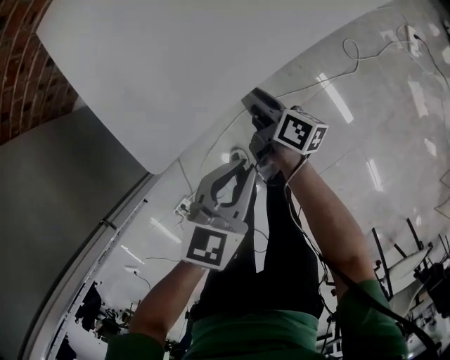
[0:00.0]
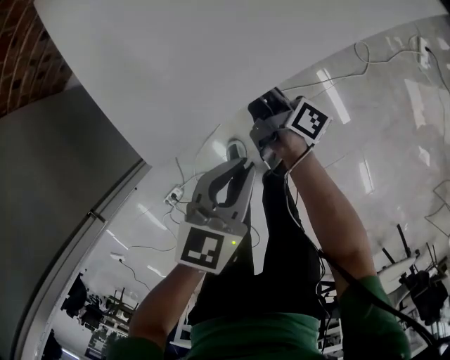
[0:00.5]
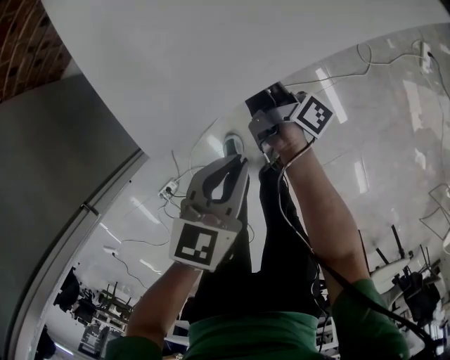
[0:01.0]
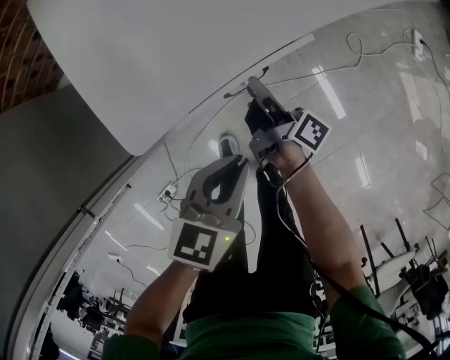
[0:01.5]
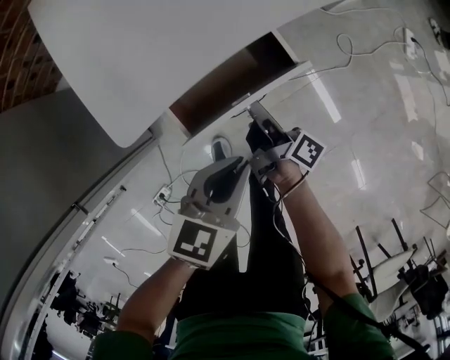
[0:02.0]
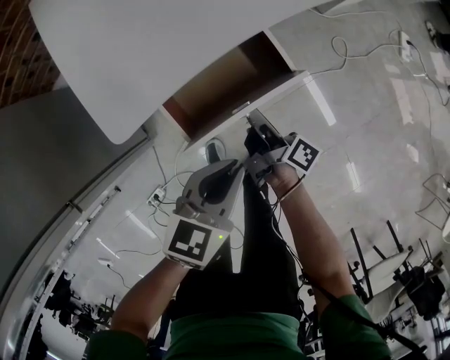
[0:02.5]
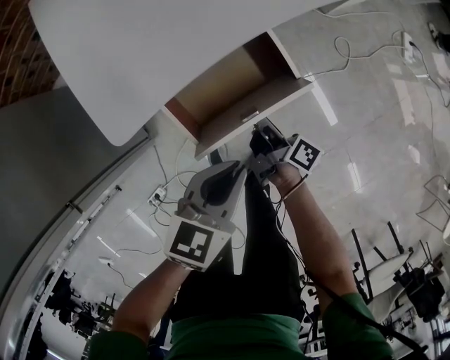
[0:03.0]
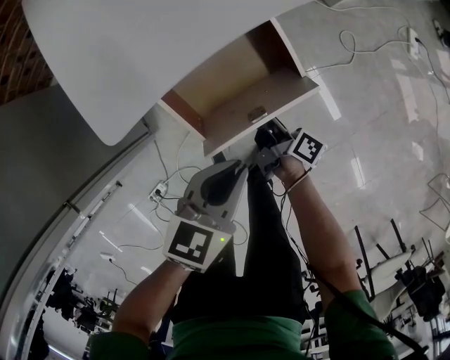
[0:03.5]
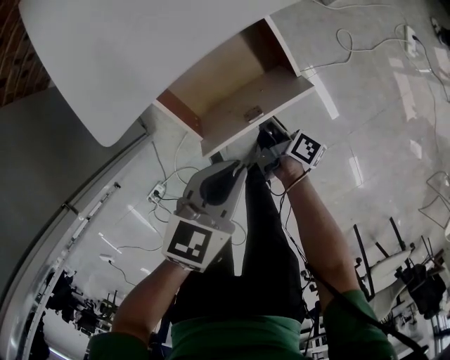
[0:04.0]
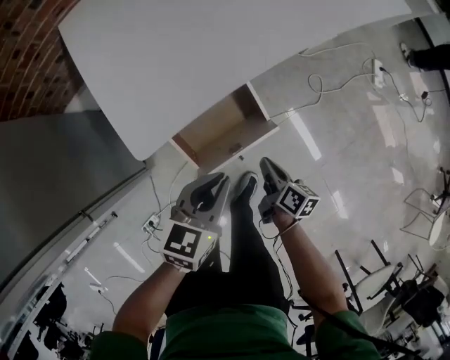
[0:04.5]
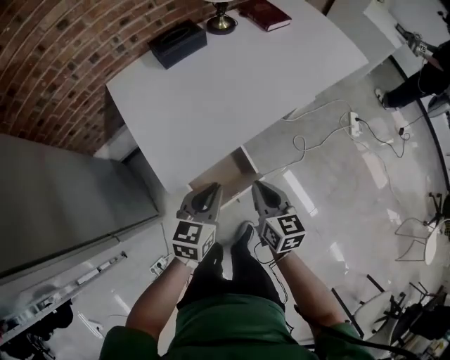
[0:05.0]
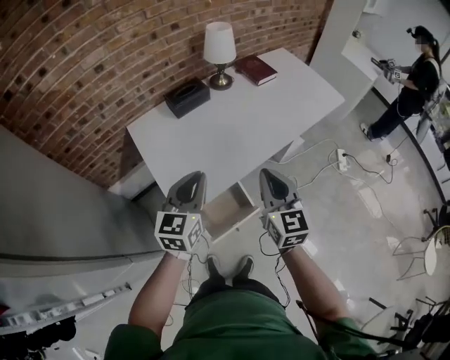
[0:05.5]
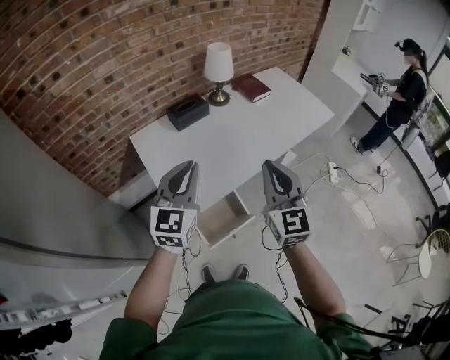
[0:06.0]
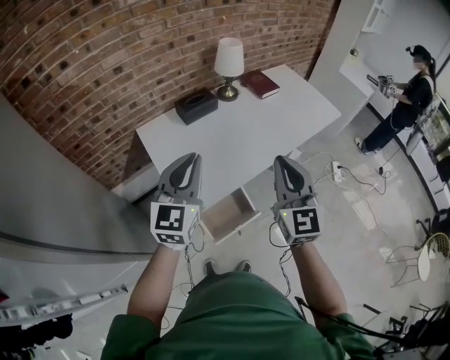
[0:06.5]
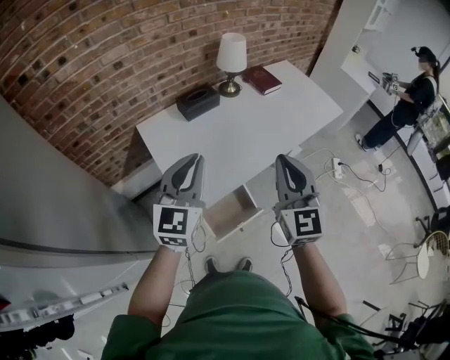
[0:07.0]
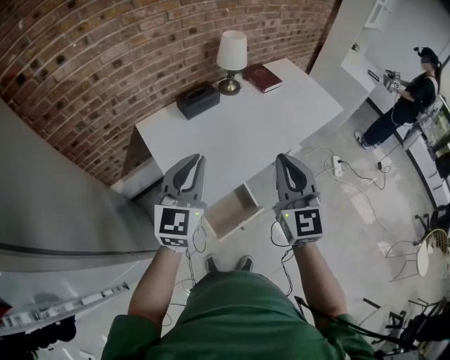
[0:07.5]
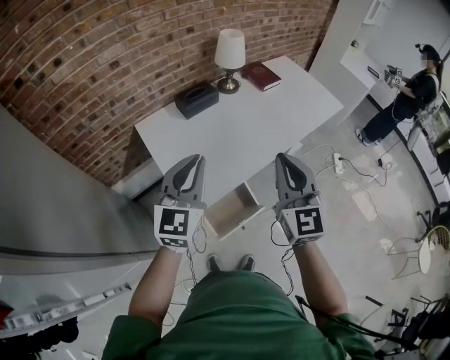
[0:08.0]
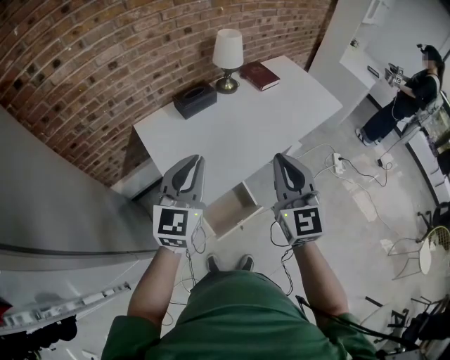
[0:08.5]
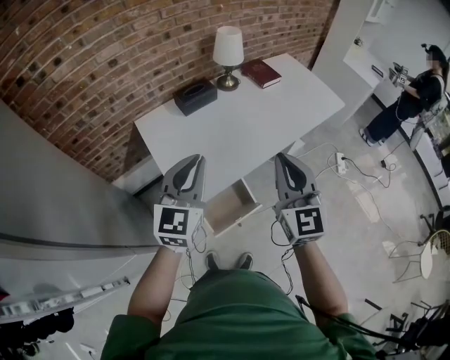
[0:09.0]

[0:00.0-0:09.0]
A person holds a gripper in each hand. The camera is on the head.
0:00.0 to 0:02.0: The right gripper heads backward and to the right, covering about 10 cm, and closes its fingers, while the left gripper moves roughly 5 cm.
0:02.0 to 0:04.5: The right gripper shifts about 10 cm to the right and backward, goes downward and returns, some 10 cm each way, and changes its angle by some 30 degrees, while the left gripper heads upward, covering approximately 5 cm.
0:04.5 to 0:07.0: The grippers both shift upward by about 50 cm. The left gripper angles its fingers upward, by about 30 degrees; the right gripper rolls counterclockwise, seen from behind, by roughly 70 degrees.
0:07.0 to 0:09.0: There are only small adjustments of the grippers.

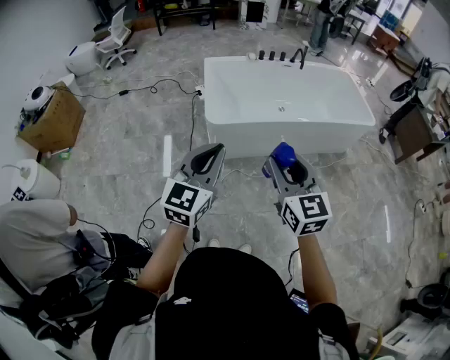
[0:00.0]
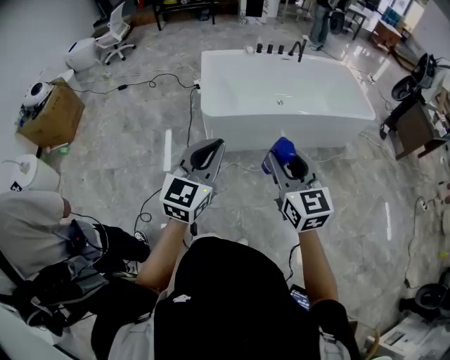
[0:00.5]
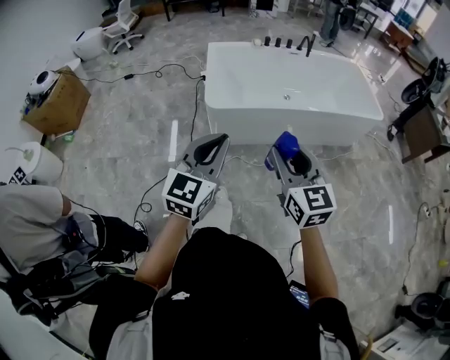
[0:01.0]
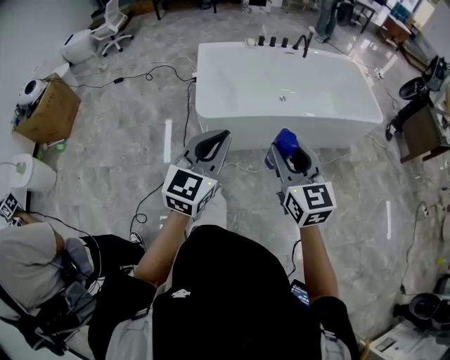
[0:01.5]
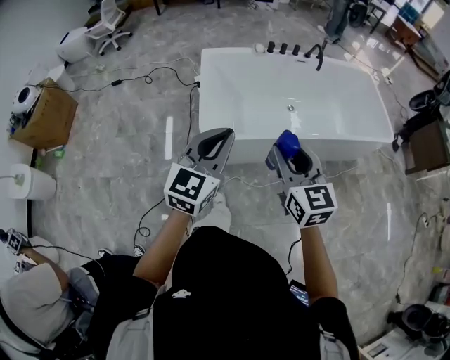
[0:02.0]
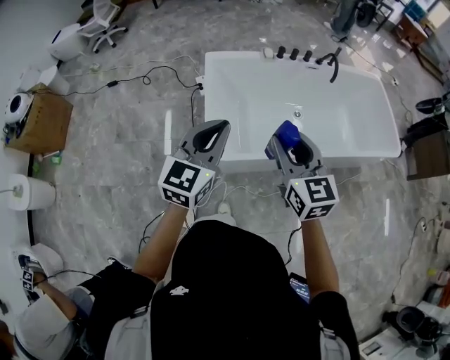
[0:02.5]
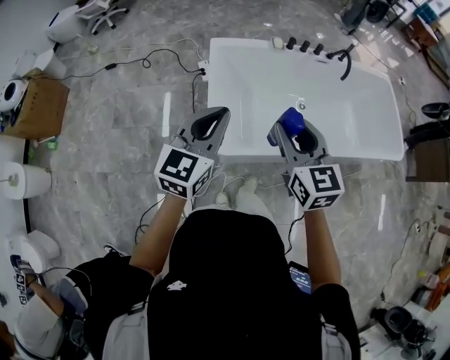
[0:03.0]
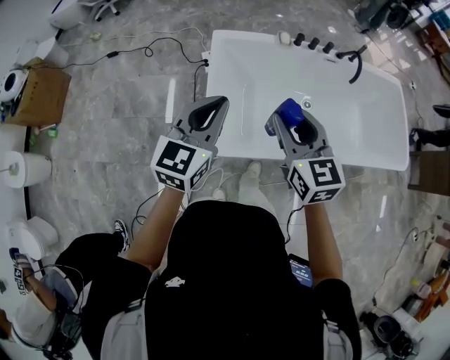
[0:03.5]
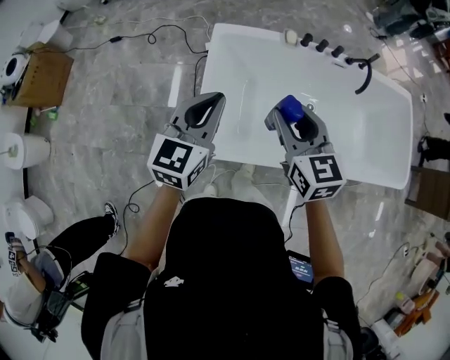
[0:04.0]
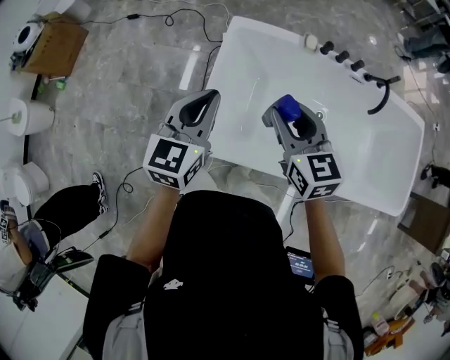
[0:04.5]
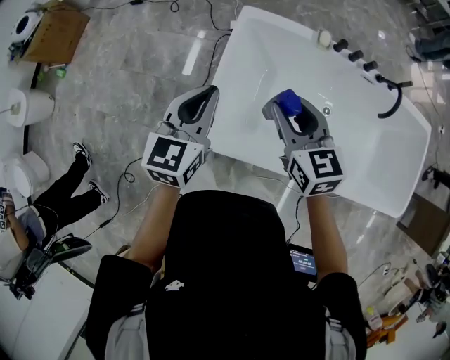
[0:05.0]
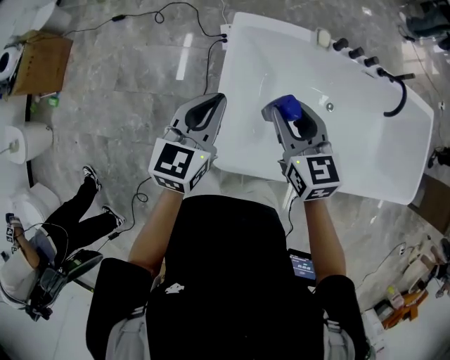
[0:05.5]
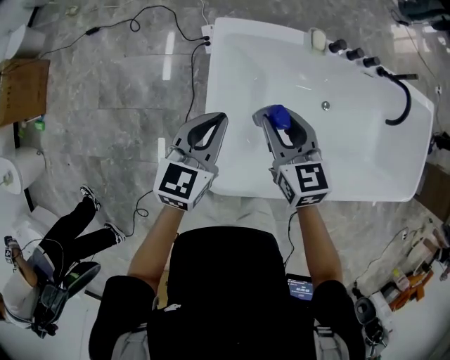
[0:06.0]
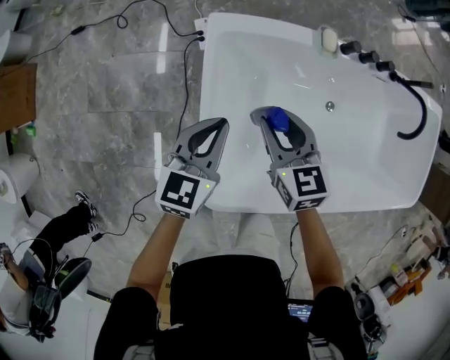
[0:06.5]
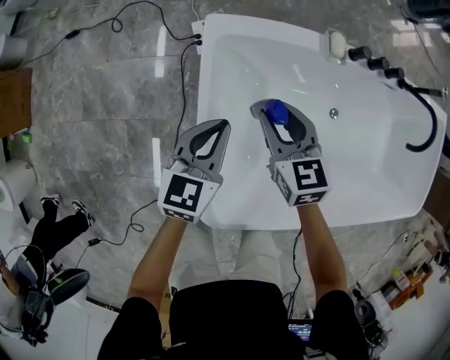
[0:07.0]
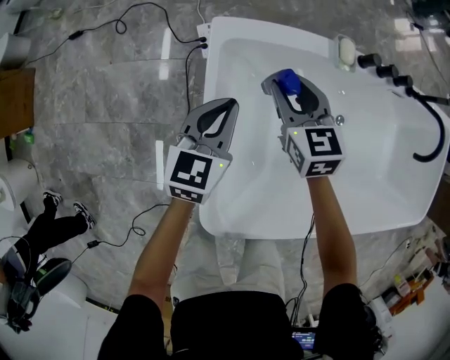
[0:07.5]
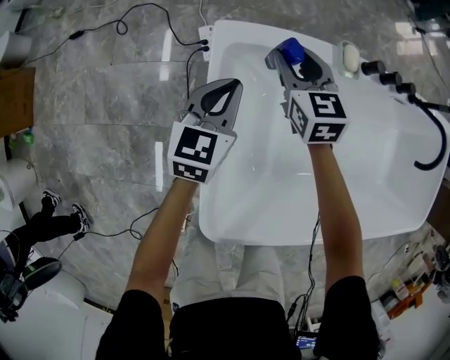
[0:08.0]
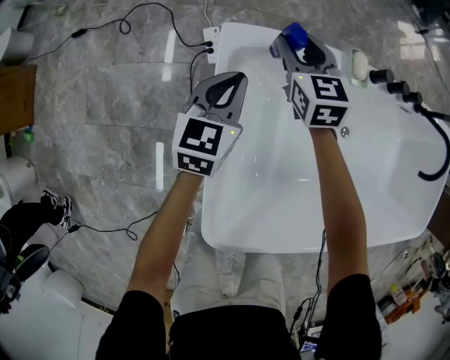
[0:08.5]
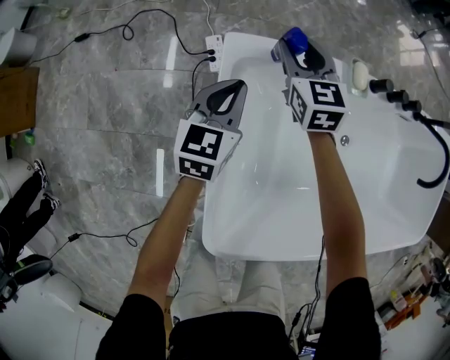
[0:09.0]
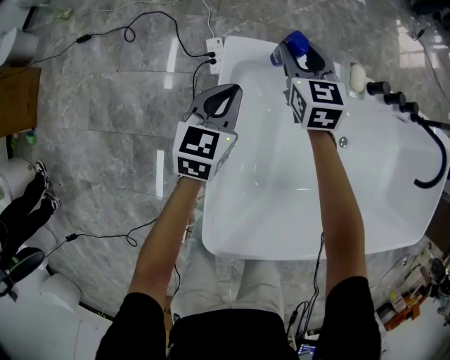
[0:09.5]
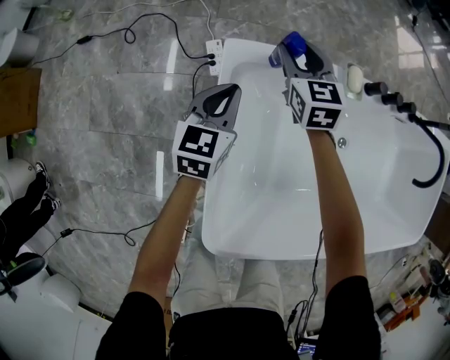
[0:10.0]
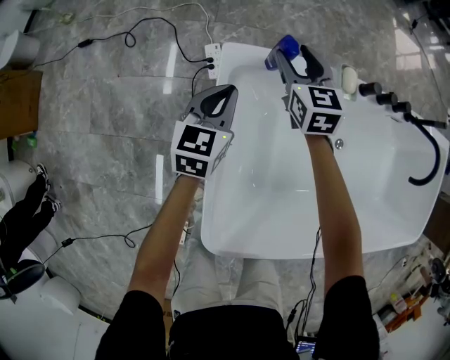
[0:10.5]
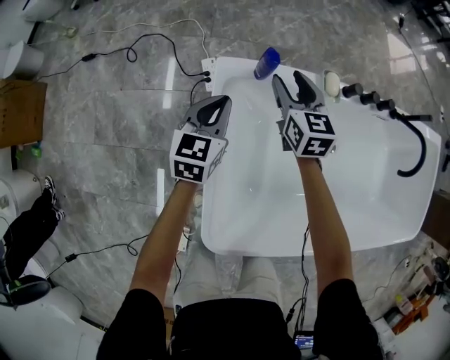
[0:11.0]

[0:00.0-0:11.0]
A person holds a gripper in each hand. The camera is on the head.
0:00.0 to 0:02.0: Both grippers move forward, about 30 cm.
0:02.0 to 0:03.5: Both grippers travel together forward, approximately 30 cm.
0:03.5 to 0:05.5: The two grippers go roughly 25 cm forward and downward.
0:05.5 to 0:07.5: The grippers both shift downward and forward by roughly 35 cm.
0:07.5 to 0:09.0: The left gripper is displaced forward by about 10 cm. The right gripper is displaced forward by about 15 cm.
0:09.0 to 0:11.0: The left gripper travels upward by roughly 5 cm. Meanwhile the right gripper moves upward and backward, roughly 10 cm.

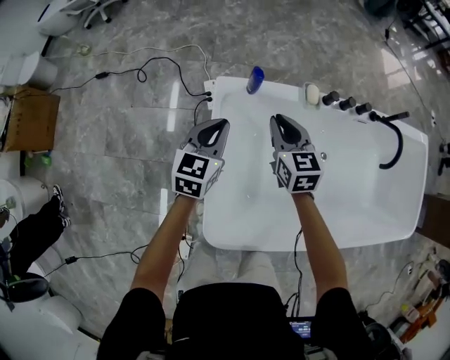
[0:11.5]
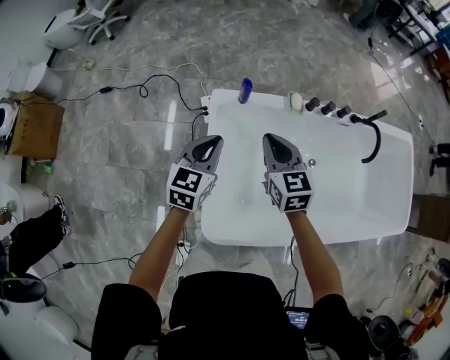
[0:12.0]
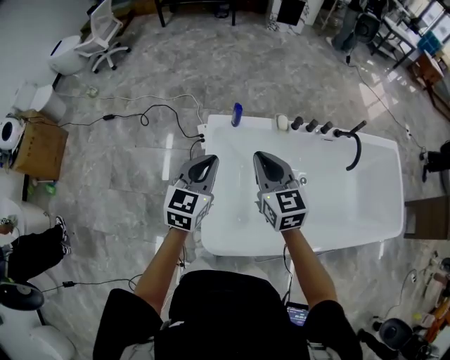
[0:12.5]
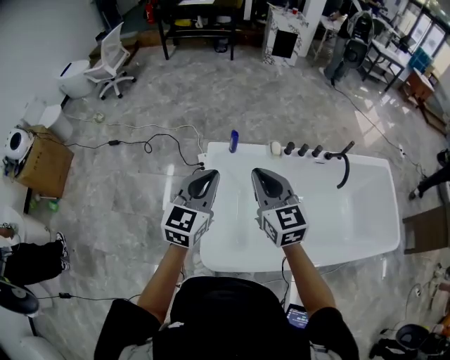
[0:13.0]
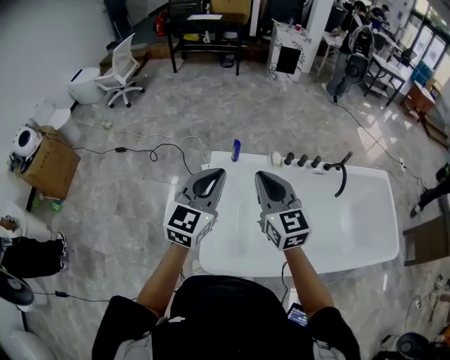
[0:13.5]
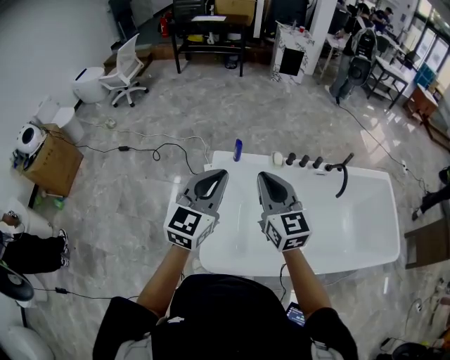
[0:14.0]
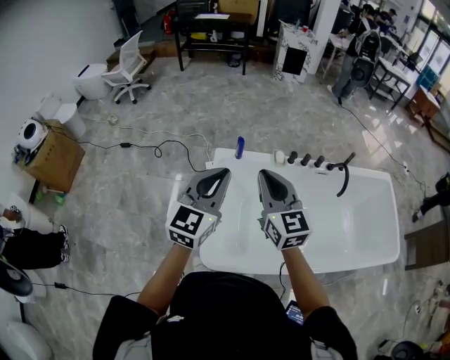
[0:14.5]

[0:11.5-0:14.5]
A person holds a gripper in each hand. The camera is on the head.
0:11.5 to 0:13.0: The two grippers go about 35 cm upward and backward.
0:13.0 to 0:14.5: The right gripper shifts by about 5 cm; the left gripper travels upward and backward by some 10 cm.

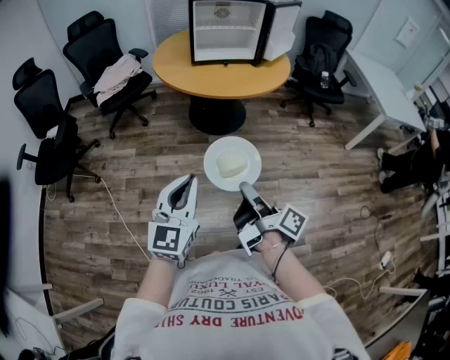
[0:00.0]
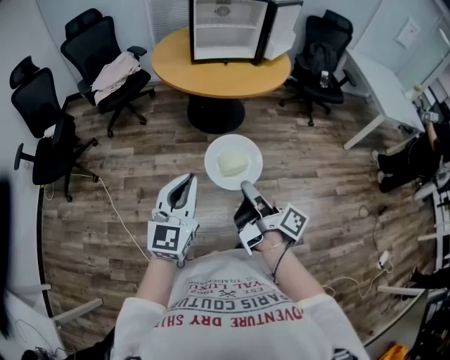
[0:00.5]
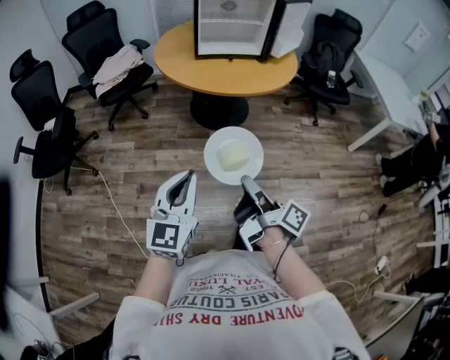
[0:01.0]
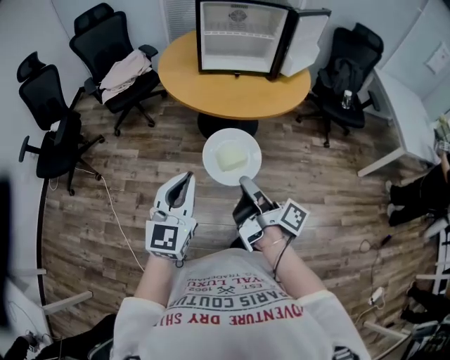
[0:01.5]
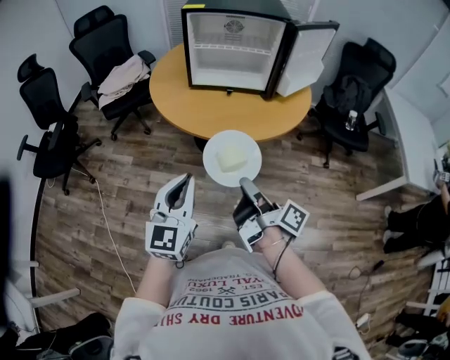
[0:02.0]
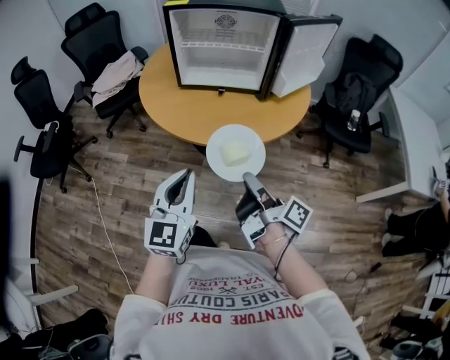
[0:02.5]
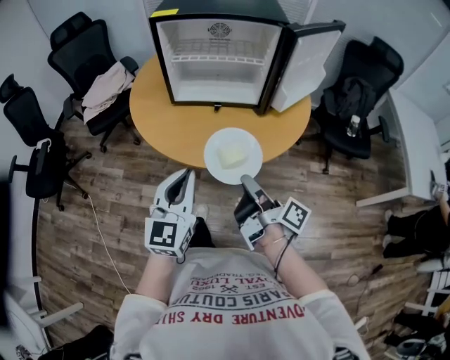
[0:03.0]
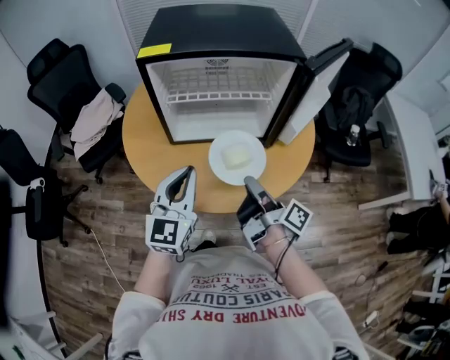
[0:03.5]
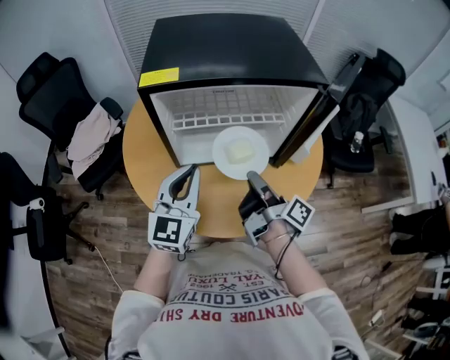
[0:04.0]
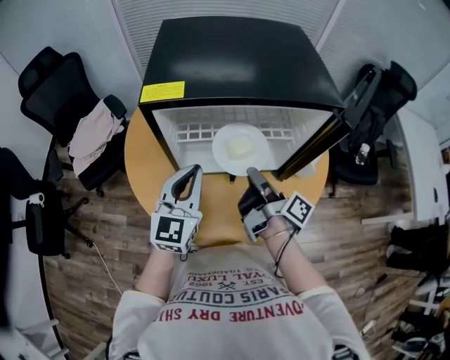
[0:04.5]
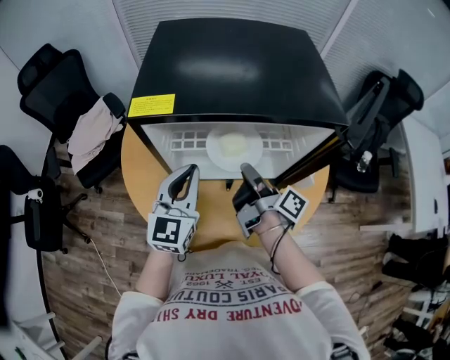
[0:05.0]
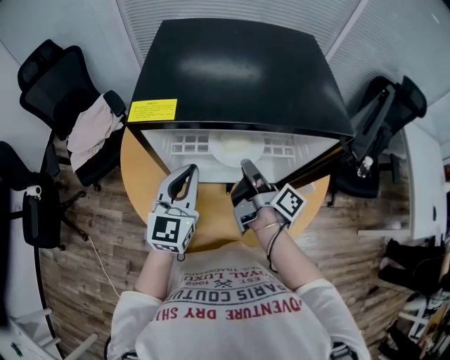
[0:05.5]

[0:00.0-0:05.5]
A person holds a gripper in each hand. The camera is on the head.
0:00.0 to 0:02.0: The left gripper shifts by about 30 cm.
0:02.0 to 0:03.5: The left gripper ends up approximately 35 cm from where it was.
0:03.5 to 0:05.5: The left gripper shifts by approximately 20 cm.
